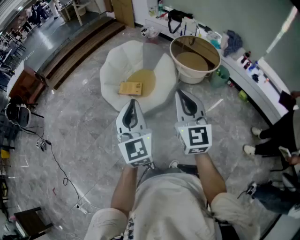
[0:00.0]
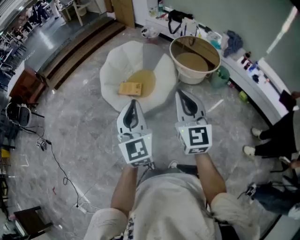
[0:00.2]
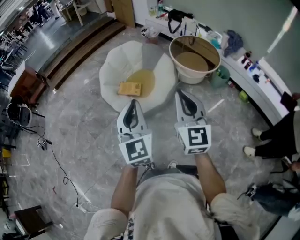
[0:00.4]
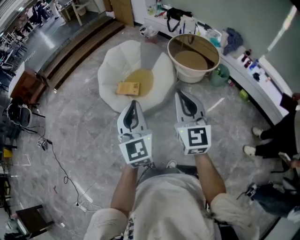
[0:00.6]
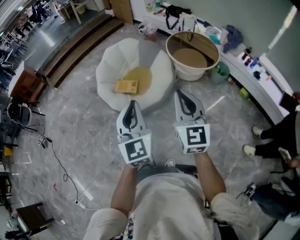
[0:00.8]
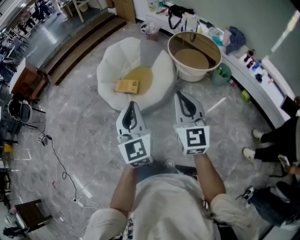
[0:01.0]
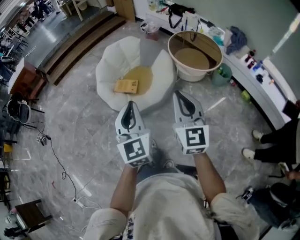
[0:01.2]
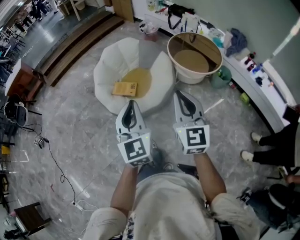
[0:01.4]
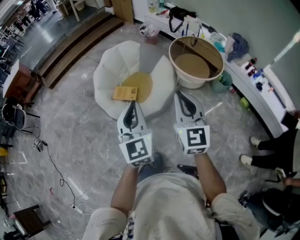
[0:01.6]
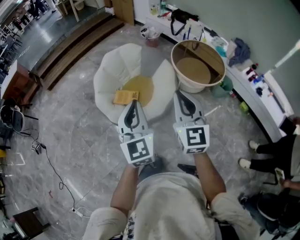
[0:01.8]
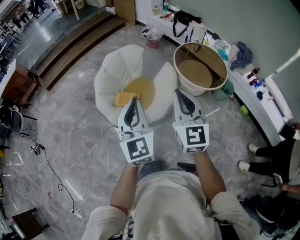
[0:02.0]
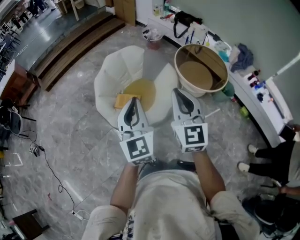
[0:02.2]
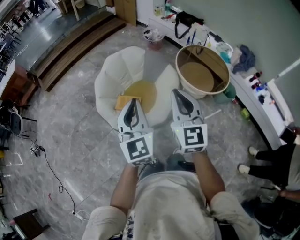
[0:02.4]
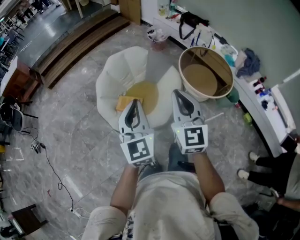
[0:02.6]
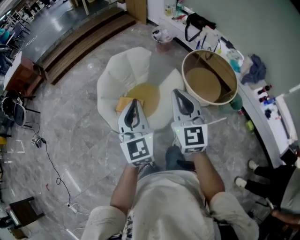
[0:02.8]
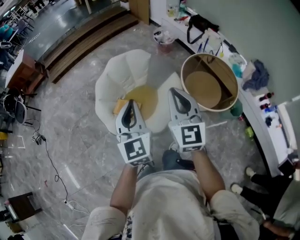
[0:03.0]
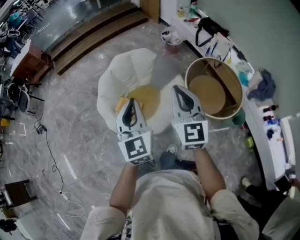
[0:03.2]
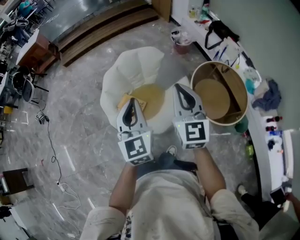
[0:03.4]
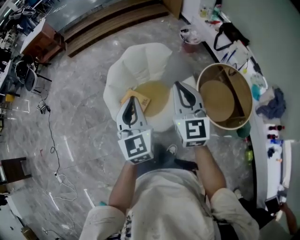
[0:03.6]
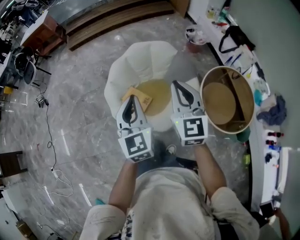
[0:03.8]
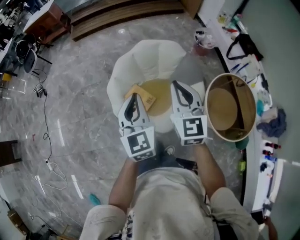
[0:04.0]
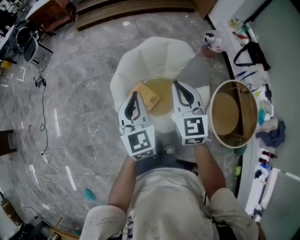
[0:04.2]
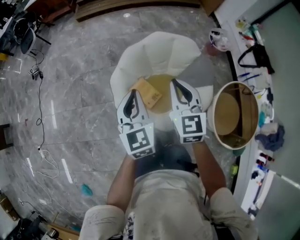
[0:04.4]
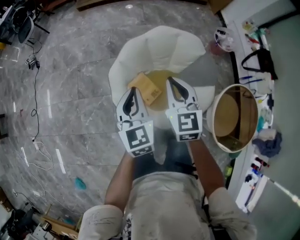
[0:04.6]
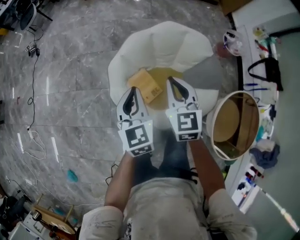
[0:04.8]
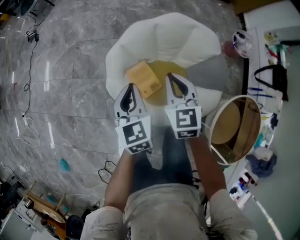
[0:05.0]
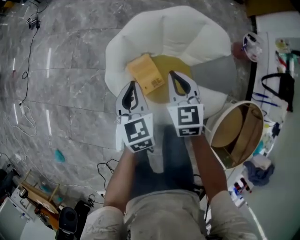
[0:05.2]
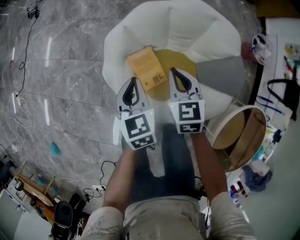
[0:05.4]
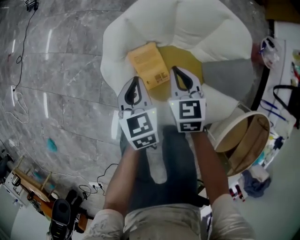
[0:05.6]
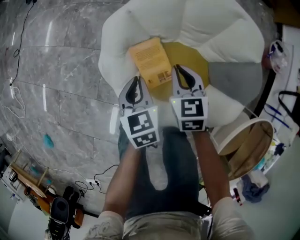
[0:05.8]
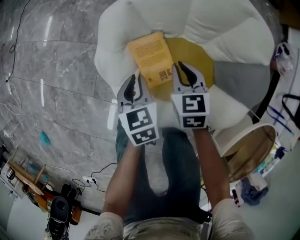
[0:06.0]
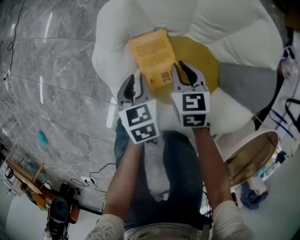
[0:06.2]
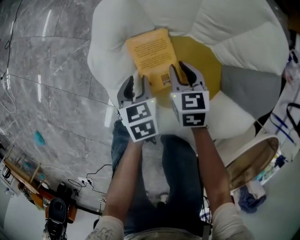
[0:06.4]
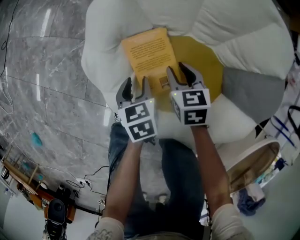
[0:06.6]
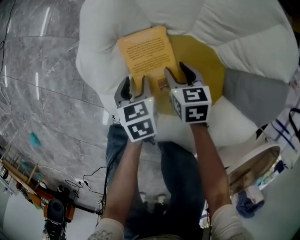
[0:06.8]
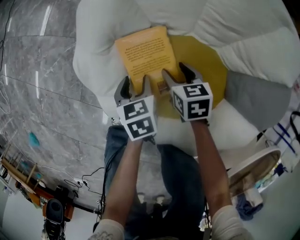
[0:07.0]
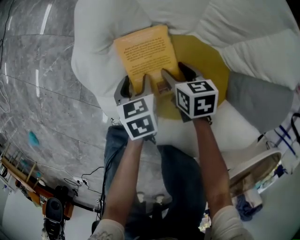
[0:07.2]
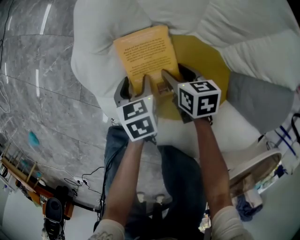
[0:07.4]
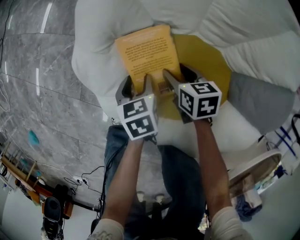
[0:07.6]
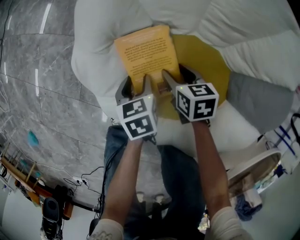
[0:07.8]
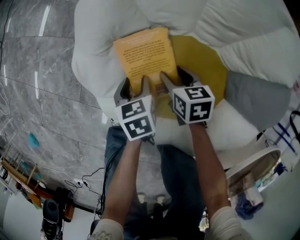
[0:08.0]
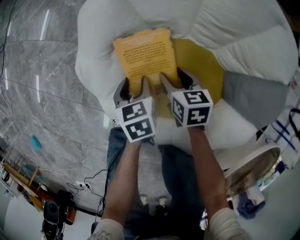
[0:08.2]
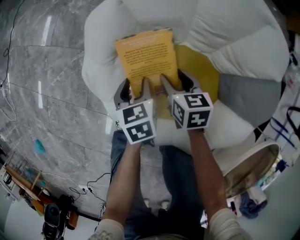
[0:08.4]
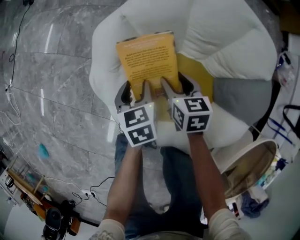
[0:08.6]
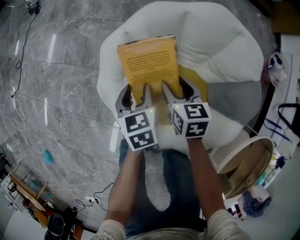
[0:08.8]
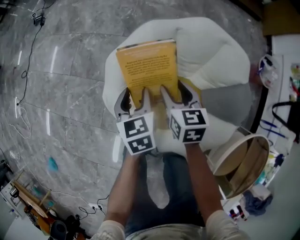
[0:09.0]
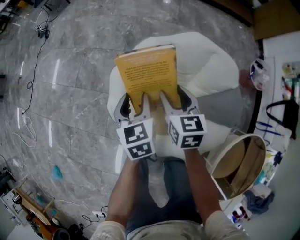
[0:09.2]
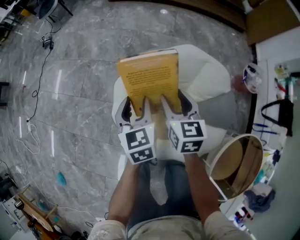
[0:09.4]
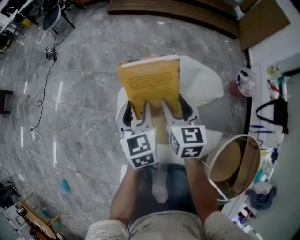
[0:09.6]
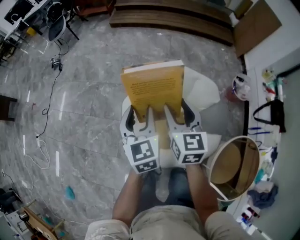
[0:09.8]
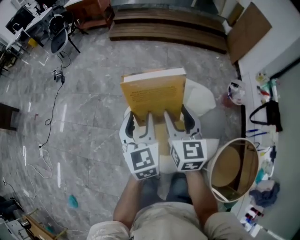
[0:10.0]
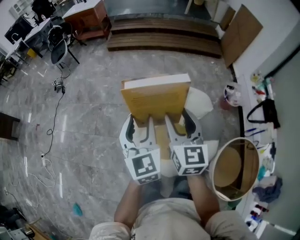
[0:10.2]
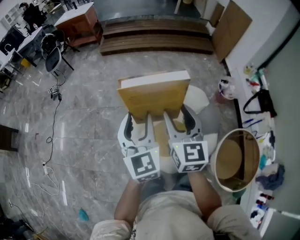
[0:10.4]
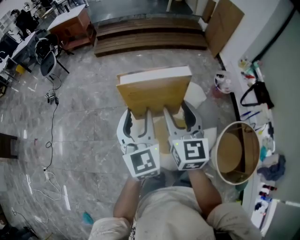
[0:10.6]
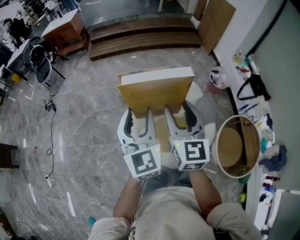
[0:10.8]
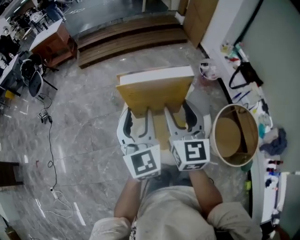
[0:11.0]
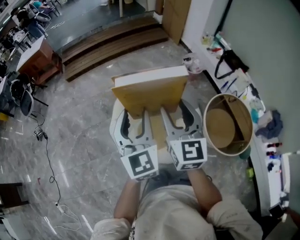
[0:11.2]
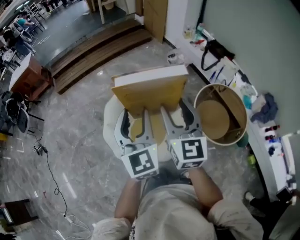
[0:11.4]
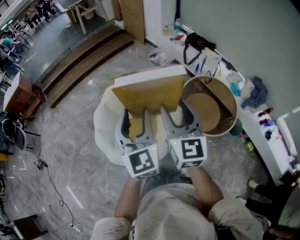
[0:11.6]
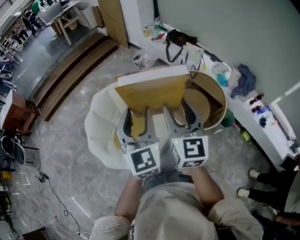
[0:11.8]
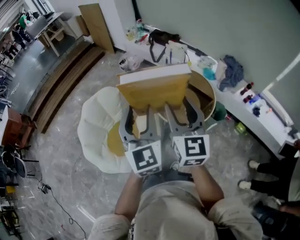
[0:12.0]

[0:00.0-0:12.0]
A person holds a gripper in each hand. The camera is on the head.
0:00.0 to 0:01.6: The grippers both shift forward and to the right by approximately 15 cm.
0:01.6 to 0:03.0: Both grippers move forward, some 25 cm.
0:03.0 to 0:04.4: The left gripper moves some 25 cm, and changes its angle by roughly 30 degrees. Meanwhile the right gripper changes place by some 30 cm, and changes its angle by roughly 30 degrees.
0:04.4 to 0:06.0: The two grippers go about 50 cm downward. The left gripper angles its fingers downward, by some 30 degrees. The right gripper swivels roughly 40 degrees.
0:06.0 to 0:07.6: The two grippers go roughly 20 cm downward. The left gripper opens, while the right gripper swivels some 30 degrees, and opens.
0:07.6 to 0:09.0: Both grippers travel together upward, roughly 30 cm. The left gripper turns by about 20 degrees; the right gripper turns by some 30 degrees.
0:09.0 to 0:10.4: The two grippers go about 50 cm upward. The left gripper points its fingers about 30 degrees further upward, while the right gripper points its fingers roughly 30 degrees further upward.
0:10.4 to 0:12.0: The pair of grippers is taken roughly 50 cm. The left gripper rotates roughly 50 degrees. Meanwhile the right gripper turns by roughly 50 degrees.

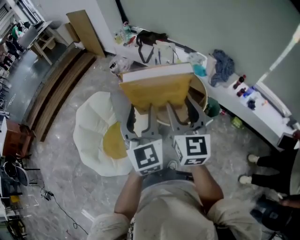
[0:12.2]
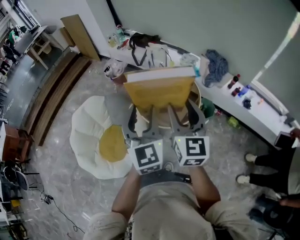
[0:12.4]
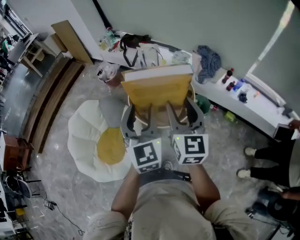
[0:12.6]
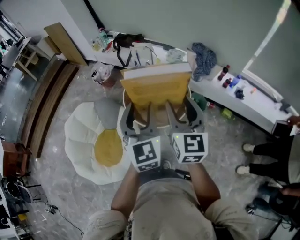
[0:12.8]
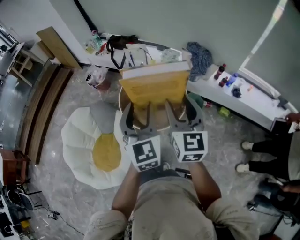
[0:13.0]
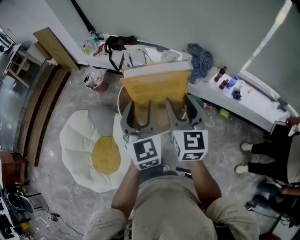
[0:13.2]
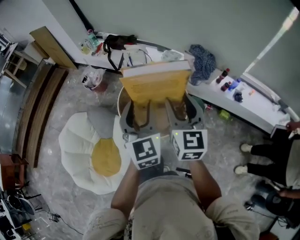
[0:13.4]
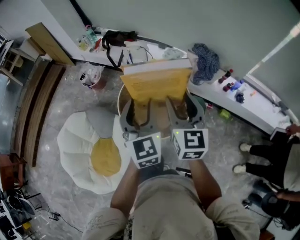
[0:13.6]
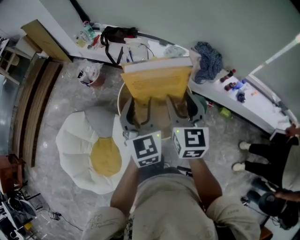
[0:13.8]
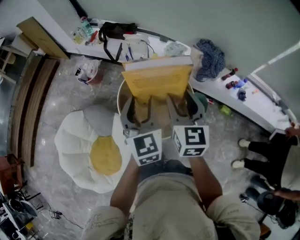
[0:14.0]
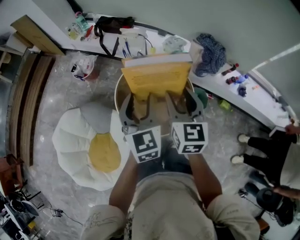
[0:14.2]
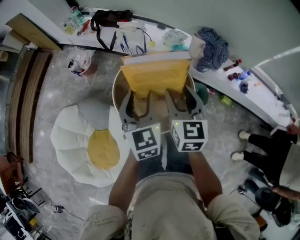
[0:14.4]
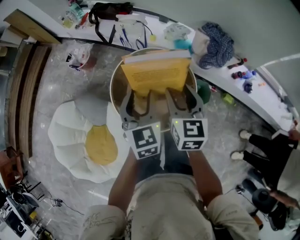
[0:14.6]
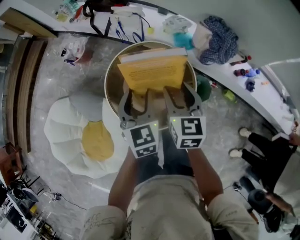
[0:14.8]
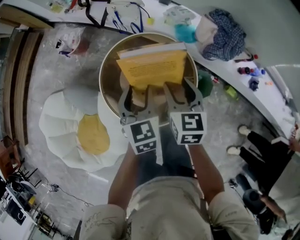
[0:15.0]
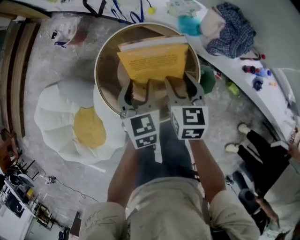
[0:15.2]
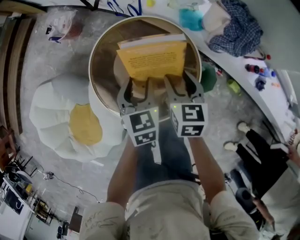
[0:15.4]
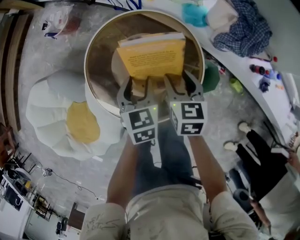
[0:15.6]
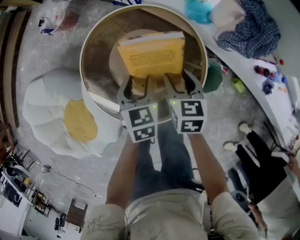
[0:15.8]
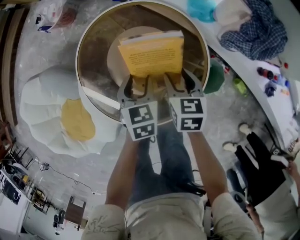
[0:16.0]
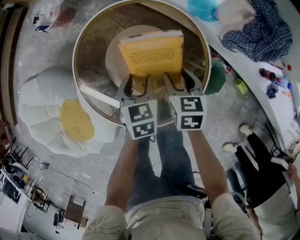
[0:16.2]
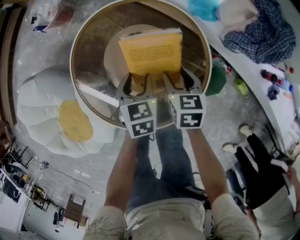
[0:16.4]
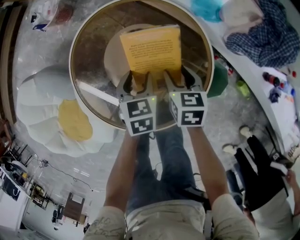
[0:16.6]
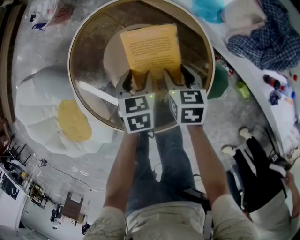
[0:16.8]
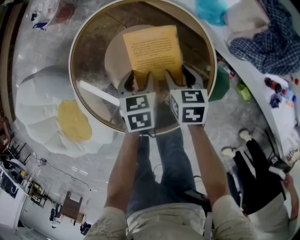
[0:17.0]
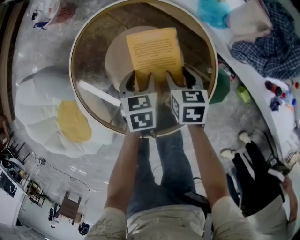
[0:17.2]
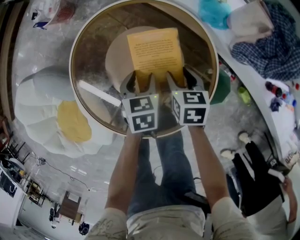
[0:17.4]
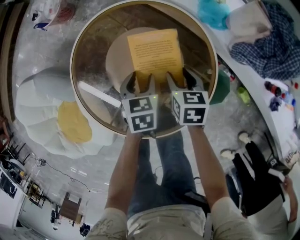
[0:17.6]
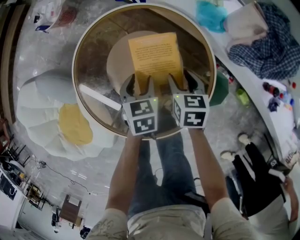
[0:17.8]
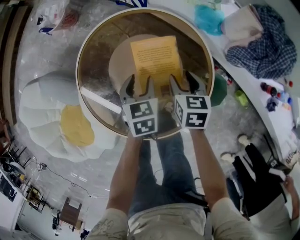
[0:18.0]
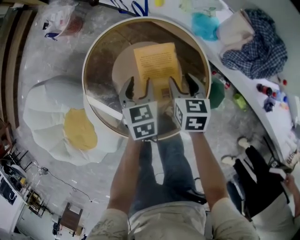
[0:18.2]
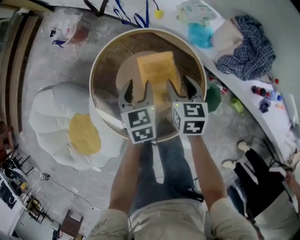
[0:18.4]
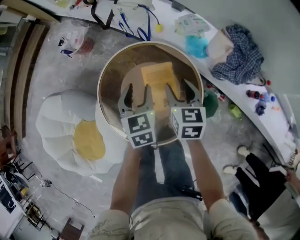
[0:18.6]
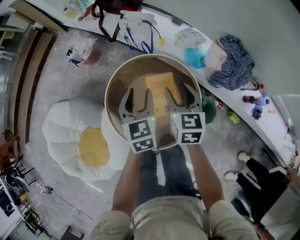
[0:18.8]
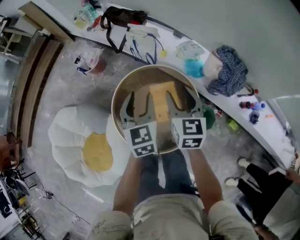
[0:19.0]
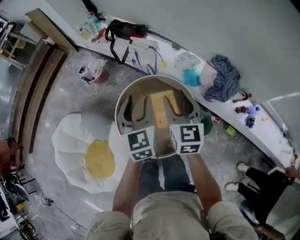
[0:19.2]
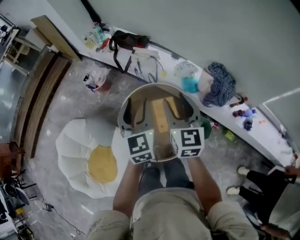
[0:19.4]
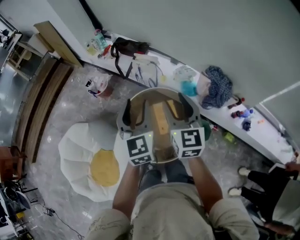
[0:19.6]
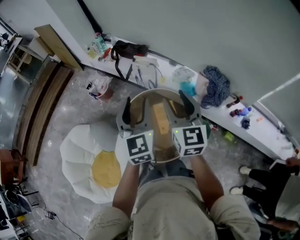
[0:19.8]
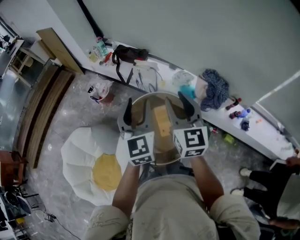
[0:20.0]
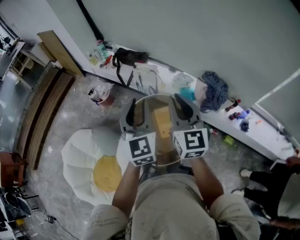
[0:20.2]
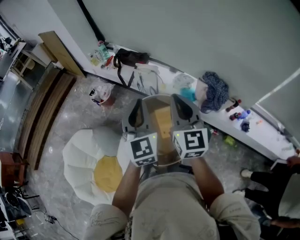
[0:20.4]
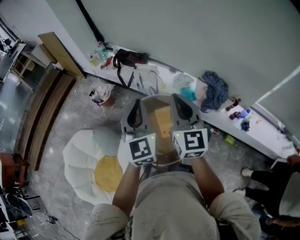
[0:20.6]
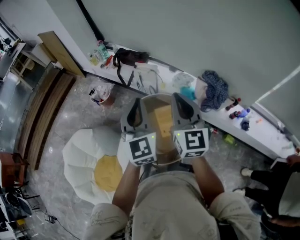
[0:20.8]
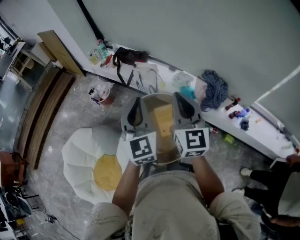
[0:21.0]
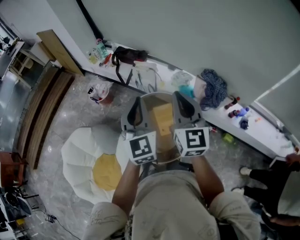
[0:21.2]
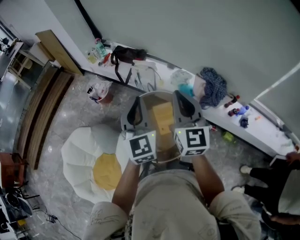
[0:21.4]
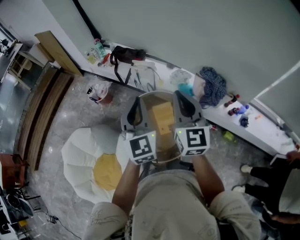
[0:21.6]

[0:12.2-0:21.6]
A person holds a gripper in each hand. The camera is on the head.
0:12.2 to 0:13.8: Both grippers travel together forward, approximately 25 cm.
0:13.8 to 0:15.4: Both grippers move downward, about 35 cm. The left gripper changes its angle by approximately 30 degrees. The right gripper changes its angle by approximately 30 degrees.
0:15.4 to 0:17.0: Both grippers travel together downward, roughly 20 cm.
0:17.0 to 0:18.4: The two grippers go some 15 cm upward.
0:18.4 to 0:20.0: Both grippers travel together upward, roughly 50 cm. The left gripper points its fingers about 40 degrees further upward. The right gripper tips its fingers upward by some 40 degrees.
0:20.0 to 0:21.6: The left gripper closes up, while the right gripper closes its fingers.

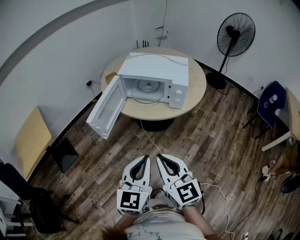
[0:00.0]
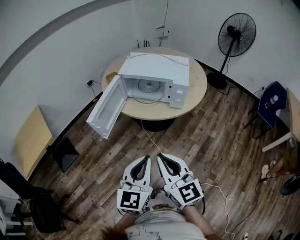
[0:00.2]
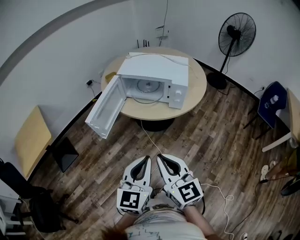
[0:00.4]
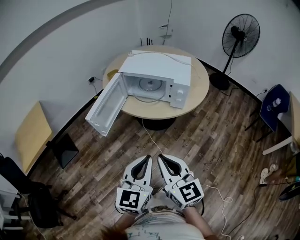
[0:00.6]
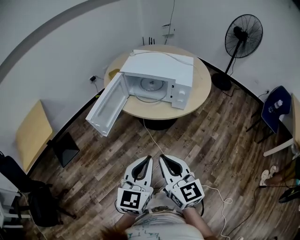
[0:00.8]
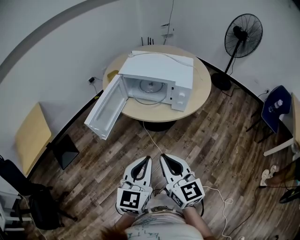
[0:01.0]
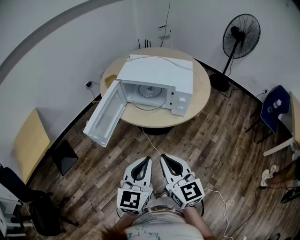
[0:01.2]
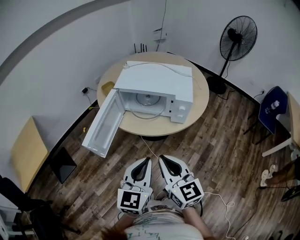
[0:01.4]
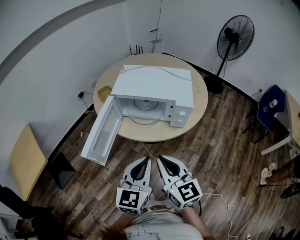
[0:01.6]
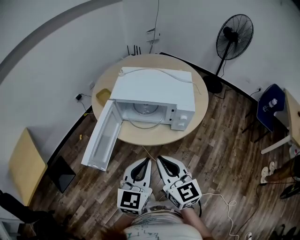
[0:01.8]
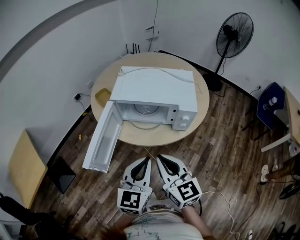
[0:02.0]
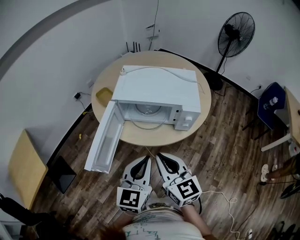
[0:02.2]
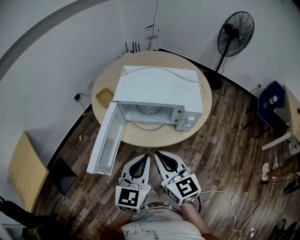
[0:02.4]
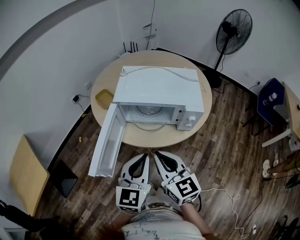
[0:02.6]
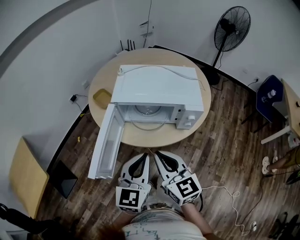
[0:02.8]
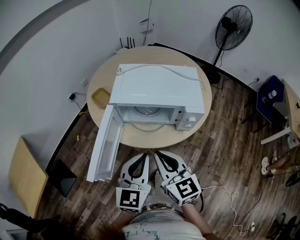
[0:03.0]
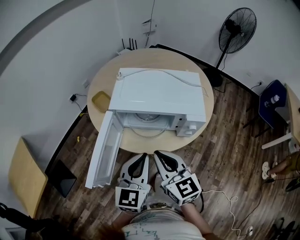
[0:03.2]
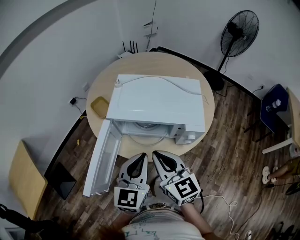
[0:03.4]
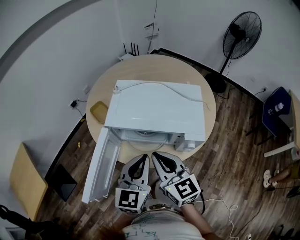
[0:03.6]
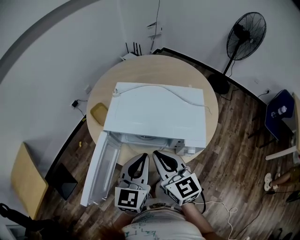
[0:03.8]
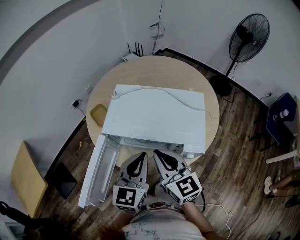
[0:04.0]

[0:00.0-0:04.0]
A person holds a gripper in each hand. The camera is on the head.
0:00.0 to 0:01.4: Both grippers travel together forward, approximately 10 cm.
0:01.4 to 0:02.6: Both grippers move forward and to the left, about 15 cm.
0:02.6 to 0:04.0: The grippers both shift forward by about 20 cm.
